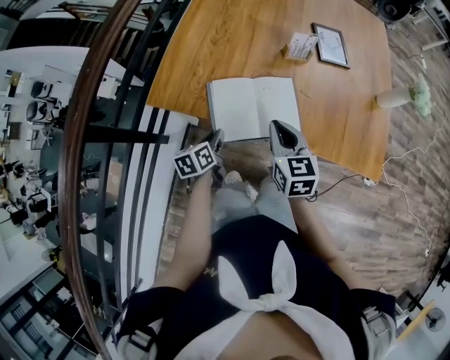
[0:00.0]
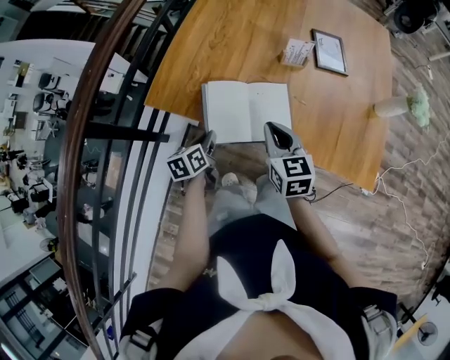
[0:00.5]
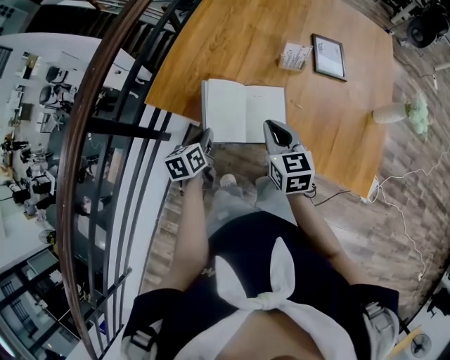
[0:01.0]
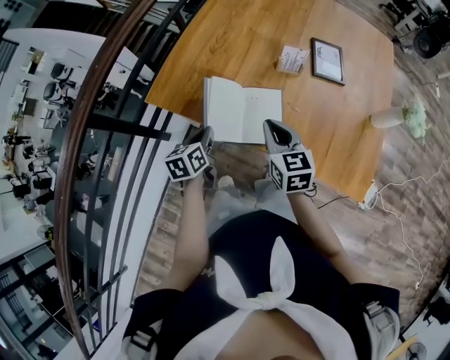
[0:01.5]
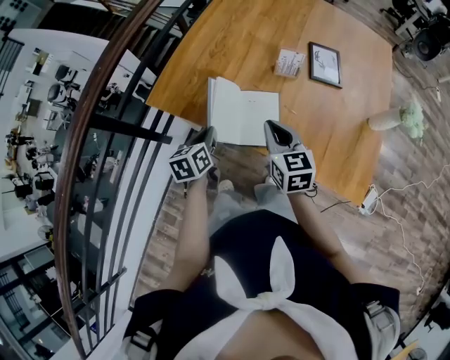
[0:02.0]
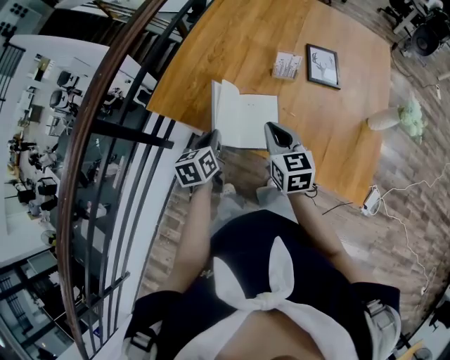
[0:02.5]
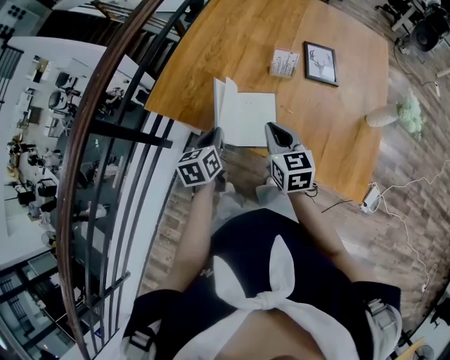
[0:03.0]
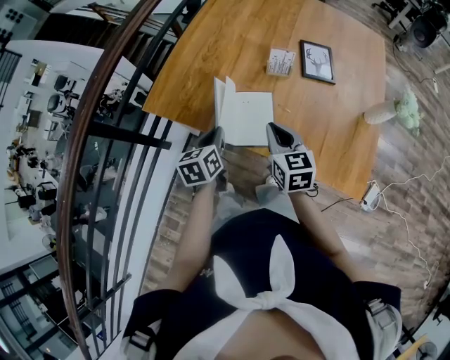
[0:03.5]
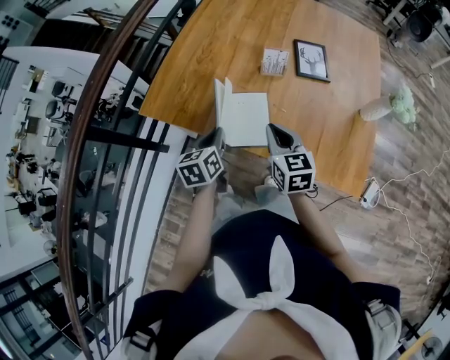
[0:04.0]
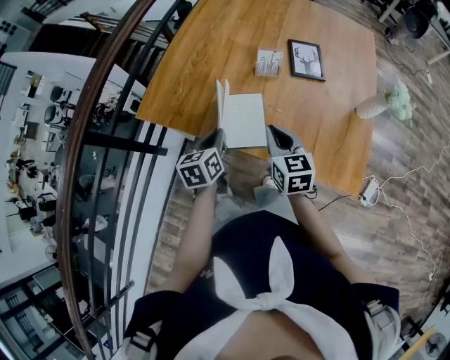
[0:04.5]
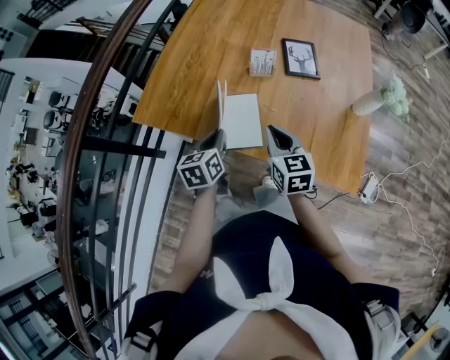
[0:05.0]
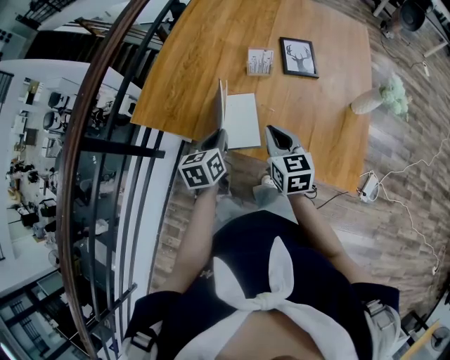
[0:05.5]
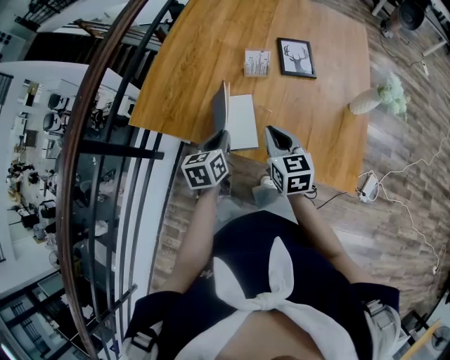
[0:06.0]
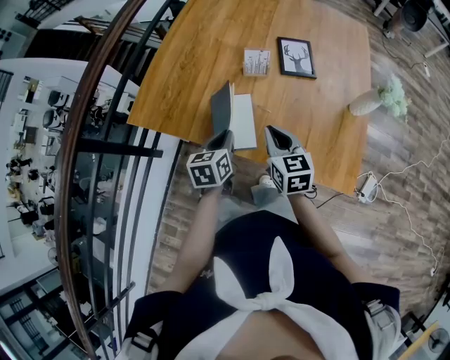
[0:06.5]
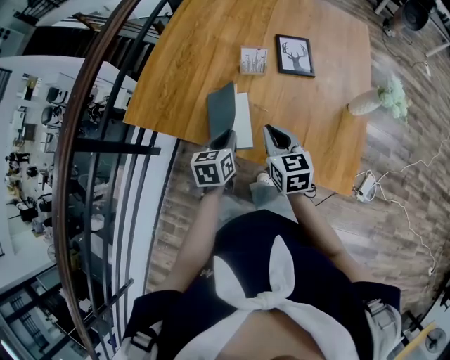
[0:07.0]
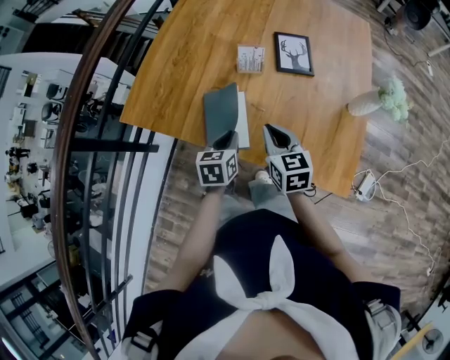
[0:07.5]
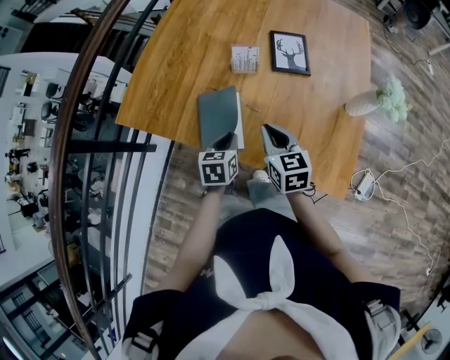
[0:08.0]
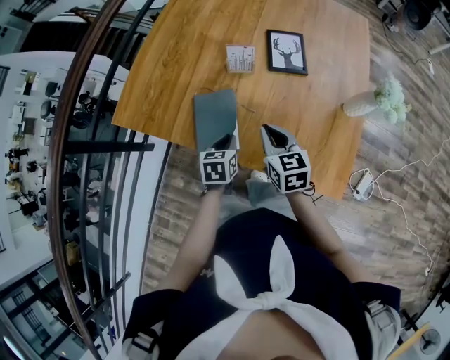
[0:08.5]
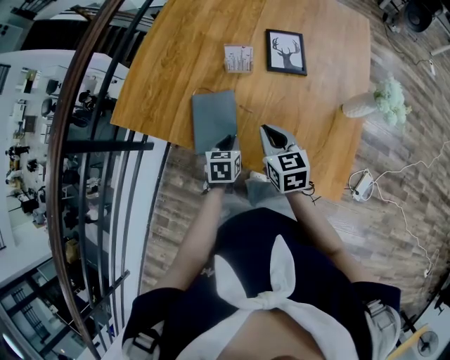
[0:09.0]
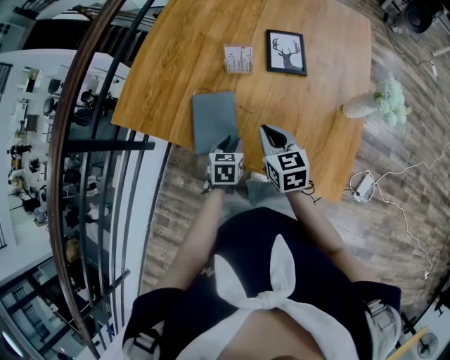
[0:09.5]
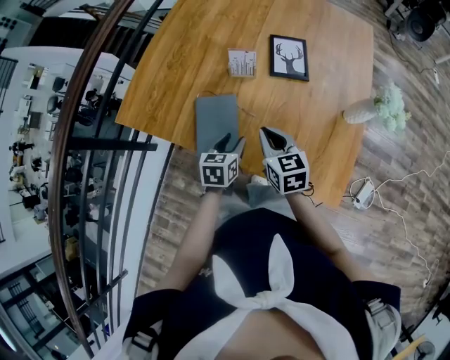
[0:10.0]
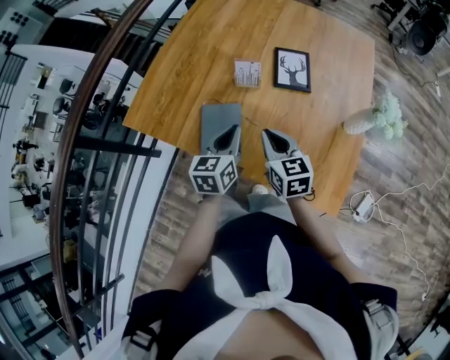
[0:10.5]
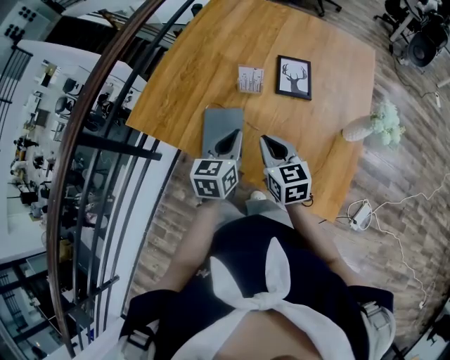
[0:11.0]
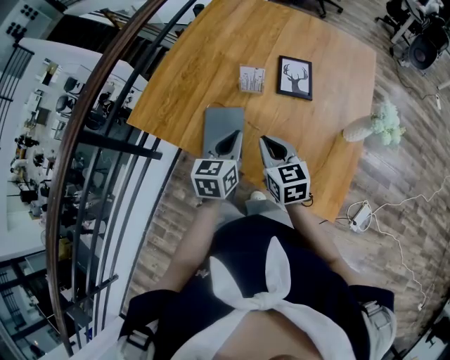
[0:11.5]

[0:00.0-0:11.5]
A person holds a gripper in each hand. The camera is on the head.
0:00.0 to 0:02.0: The right gripper travels to the right by some 10 cm; the left gripper is displaced upward and to the right by roughly 10 cm.
0:02.0 to 0:04.0: The left gripper travels to the right by some 5 cm.
0:04.0 to 0:06.0: The left gripper travels to the right by some 5 cm, while the right gripper ends up roughly 5 cm from where it was.
0:06.0 to 0:07.5: The left gripper shifts roughly 5 cm to the right.
0:07.5 to 0:09.5: The left gripper goes approximately 10 cm downward and to the right. Meanwhile the right gripper ends up some 5 cm from where it was.
0:09.5 to 0:11.5: The right gripper goes approximately 5 cm upward. Meanwhile the left gripper heads upward, covering approximately 20 cm, rotates roughly 20 degrees, and closes.

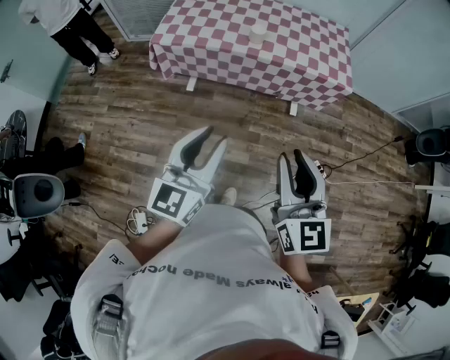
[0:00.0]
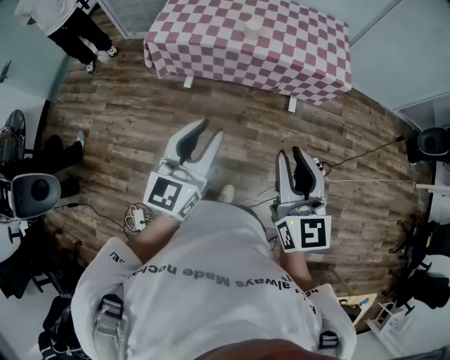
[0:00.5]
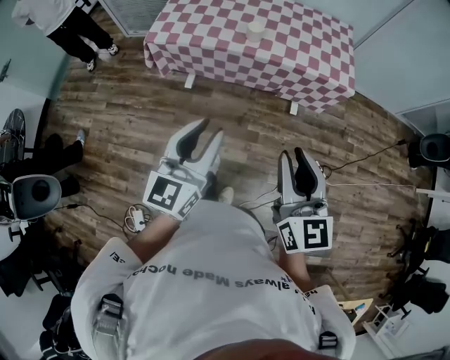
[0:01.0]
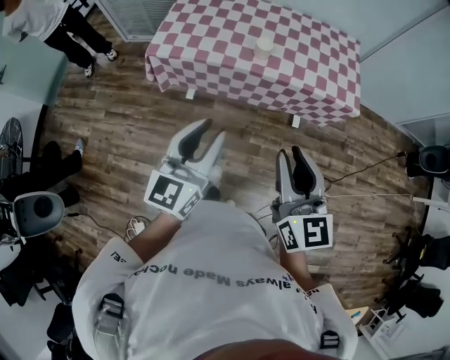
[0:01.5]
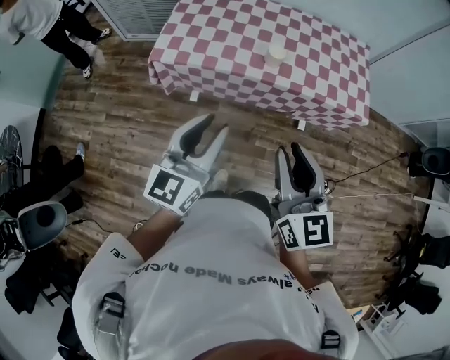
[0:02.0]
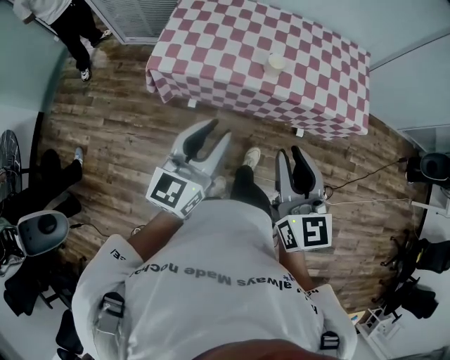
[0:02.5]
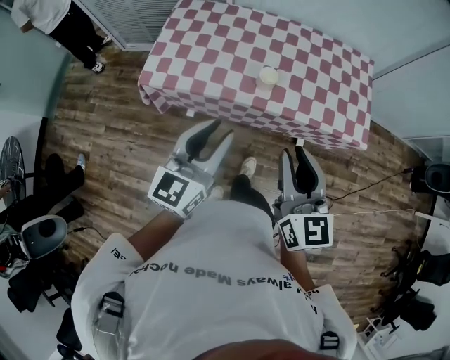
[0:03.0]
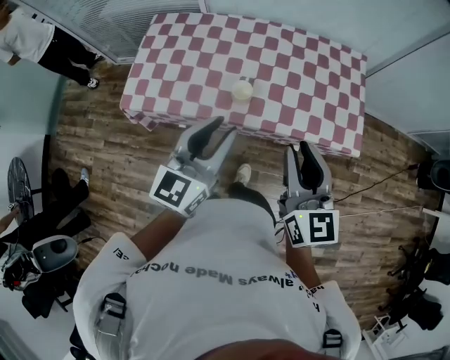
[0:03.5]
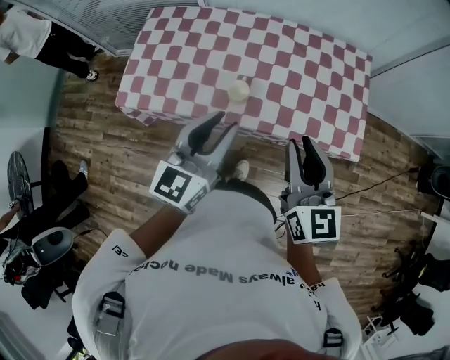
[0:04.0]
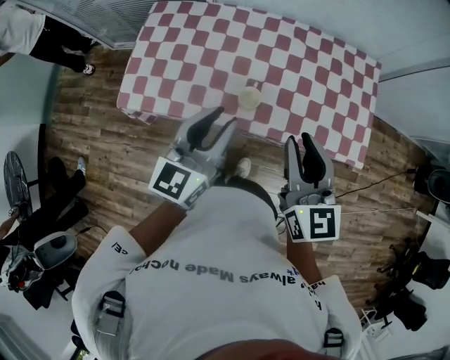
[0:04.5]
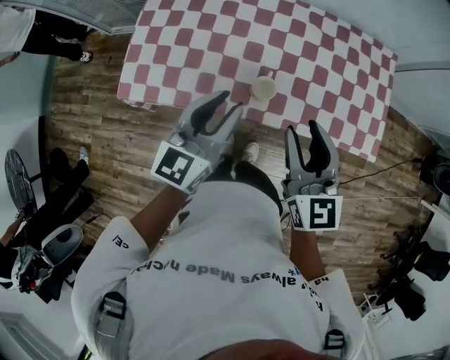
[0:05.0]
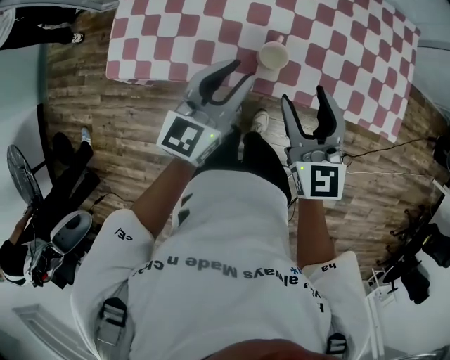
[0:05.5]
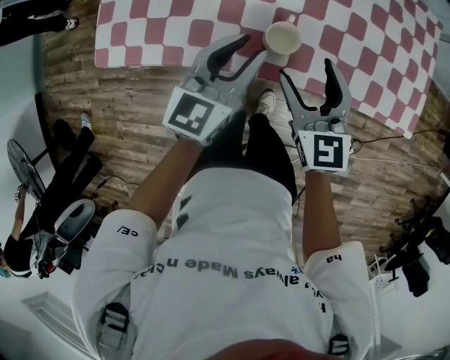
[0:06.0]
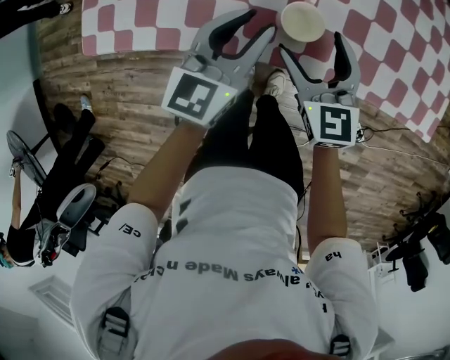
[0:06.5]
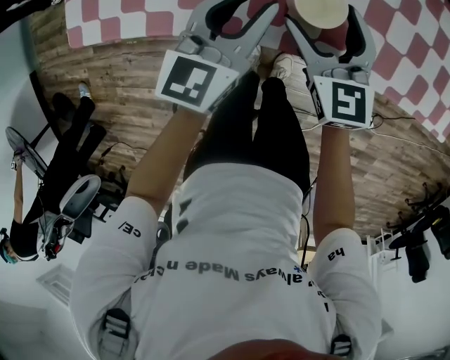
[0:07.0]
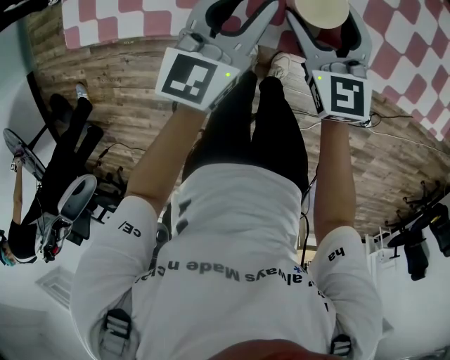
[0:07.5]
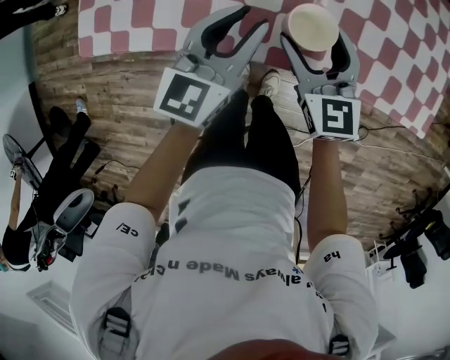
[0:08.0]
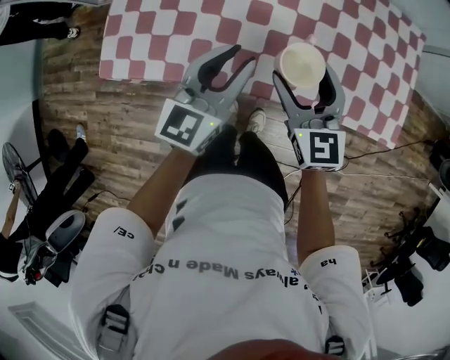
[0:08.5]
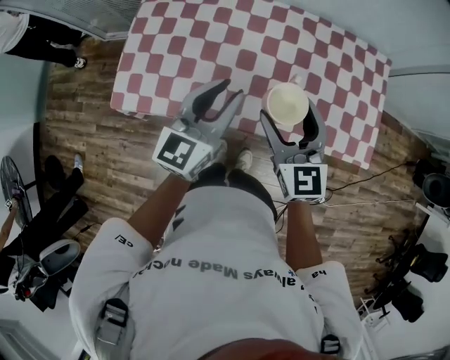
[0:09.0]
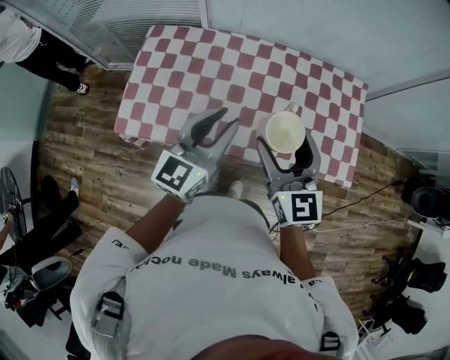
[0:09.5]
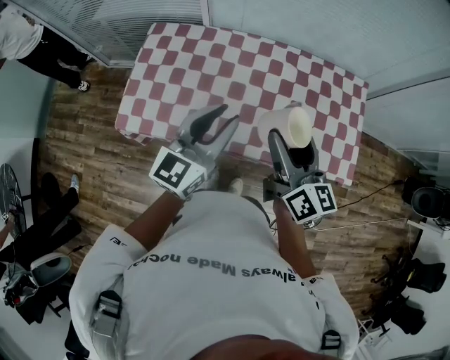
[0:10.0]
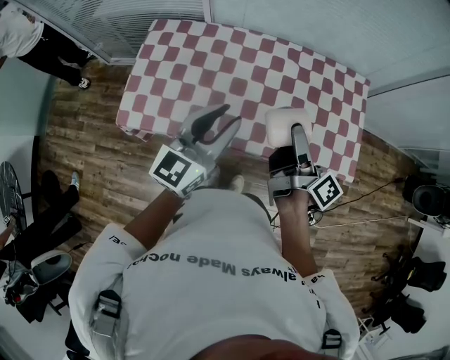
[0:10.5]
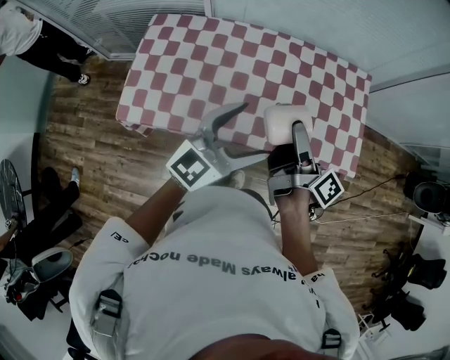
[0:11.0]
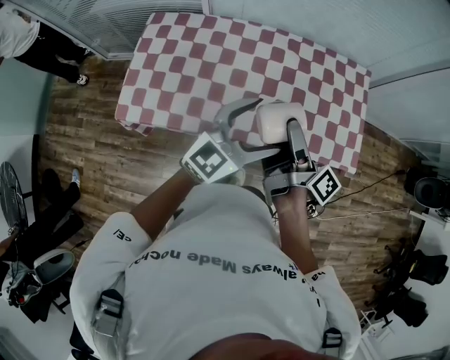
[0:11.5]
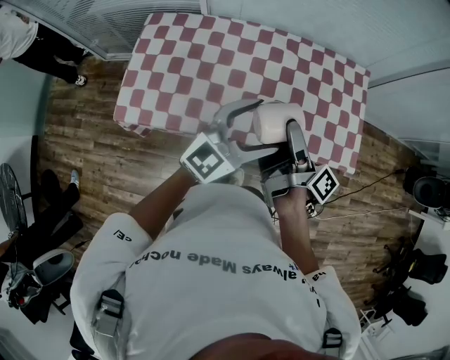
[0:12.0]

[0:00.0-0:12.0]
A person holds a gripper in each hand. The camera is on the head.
0:00.0 to 0:02.0: Both grippers move forward and to the left, approximately 30 cm.
0:02.0 to 0:04.0: Both grippers are carried forward and to the right, some 40 cm.
0:04.0 to 0:06.0: The left gripper goes approximately 30 cm downward and forward. The right gripper heads downward, to the left and forward, covering approximately 35 cm, and opens its fingers.
0:06.0 to 0:08.0: Both grippers travel together downward, approximately 5 cm.
0:08.0 to 0:10.0: The grippers both shift upward by roughly 35 cm. The right gripper turns by some 30 degrees.
0:10.0 to 0:12.0: The left gripper is displaced to the right by some 10 cm, rotates roughly 30 degrees, and opens, while the right gripper twists about 60 degrees clockwise, seen from behind.

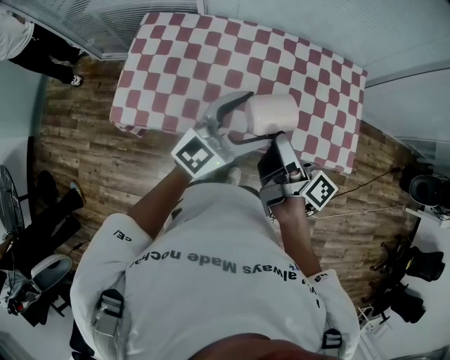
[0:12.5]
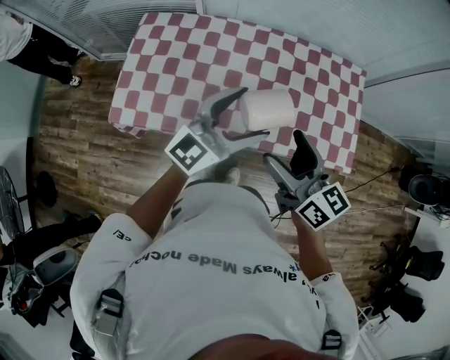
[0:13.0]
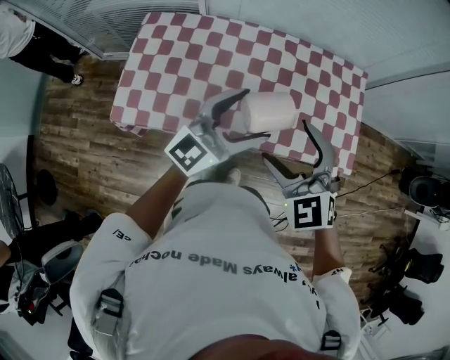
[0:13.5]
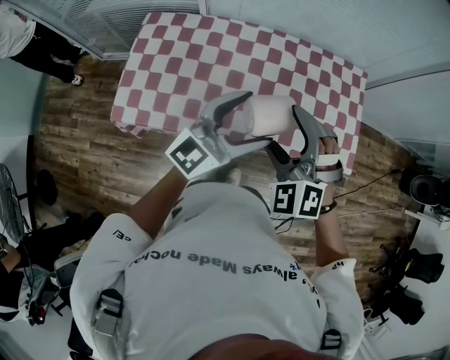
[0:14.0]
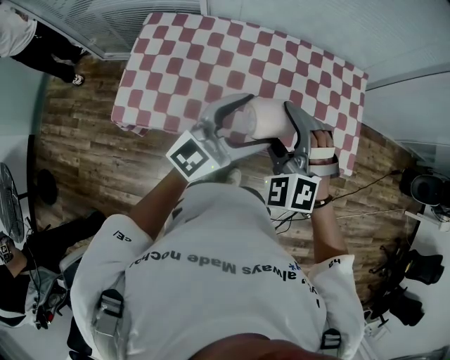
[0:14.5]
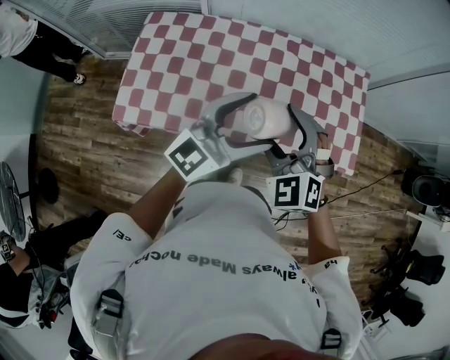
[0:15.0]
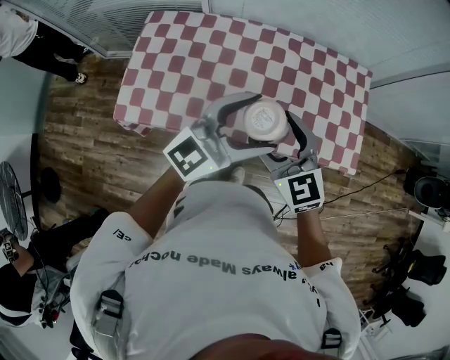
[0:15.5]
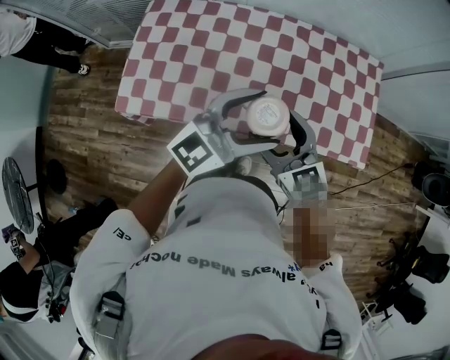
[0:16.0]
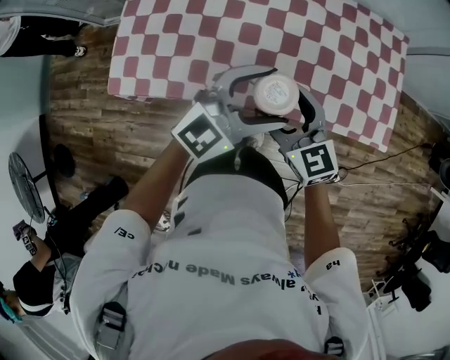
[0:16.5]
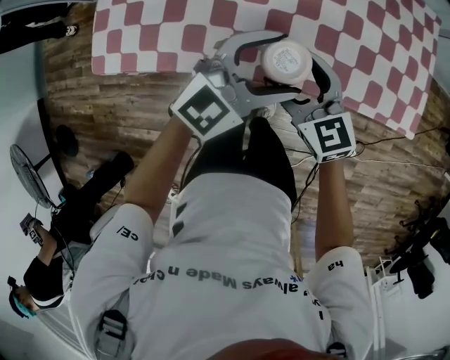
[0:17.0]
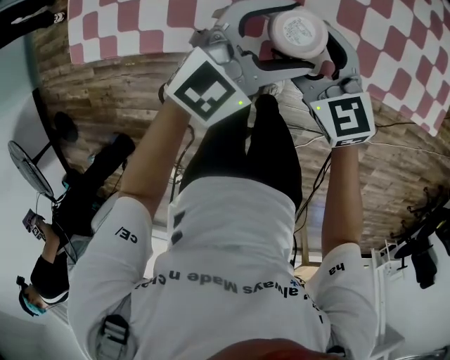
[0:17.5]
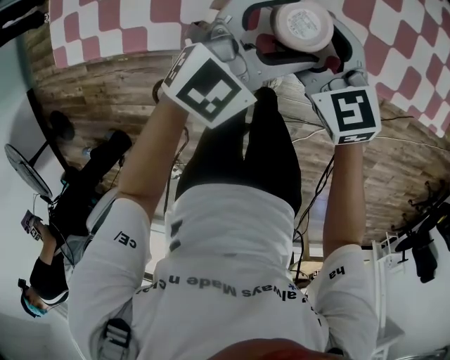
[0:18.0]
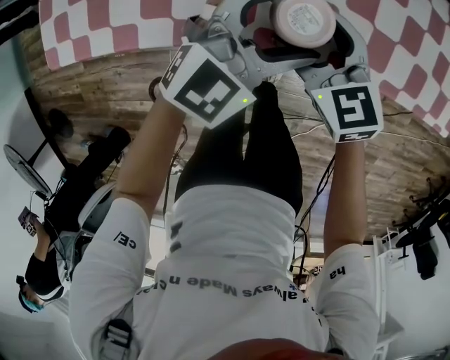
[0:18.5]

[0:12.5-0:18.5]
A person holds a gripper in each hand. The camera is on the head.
0:12.5 to 0:14.5: The right gripper rotates around the line of its fingers by roughly 130 degrees, counterclockwise from behind.
0:14.5 to 0:16.5: Both grippers travel together downward, about 15 cm. The right gripper rolls clockwise, seen from behind, by approximately 60 degrees.
0:16.5 to 0:18.5: The two grippers go roughly 30 cm downward.
